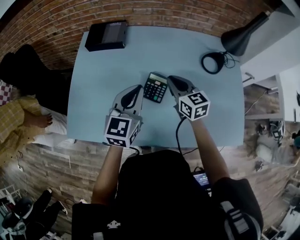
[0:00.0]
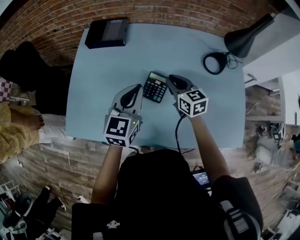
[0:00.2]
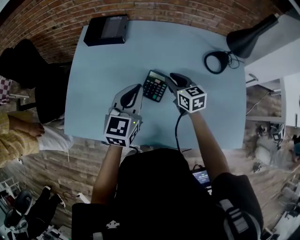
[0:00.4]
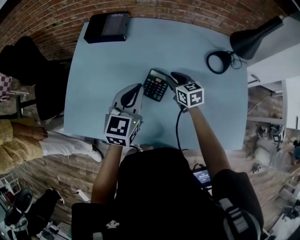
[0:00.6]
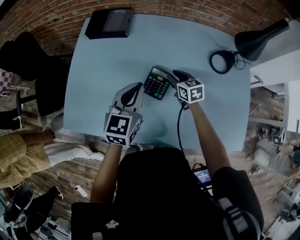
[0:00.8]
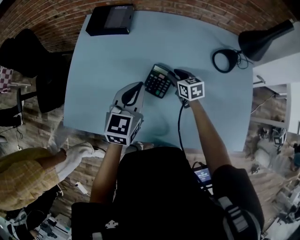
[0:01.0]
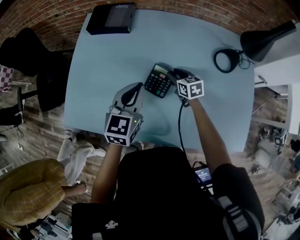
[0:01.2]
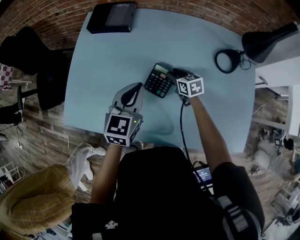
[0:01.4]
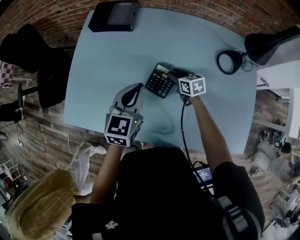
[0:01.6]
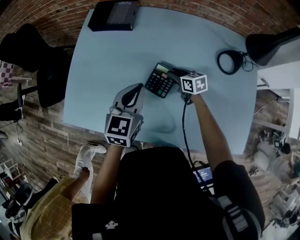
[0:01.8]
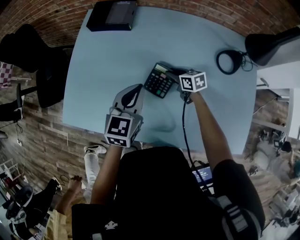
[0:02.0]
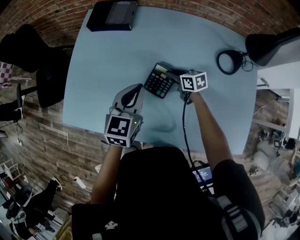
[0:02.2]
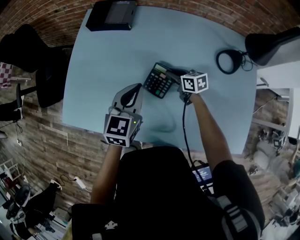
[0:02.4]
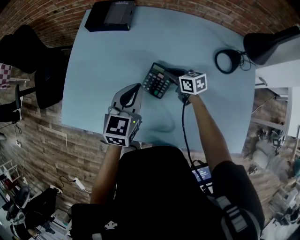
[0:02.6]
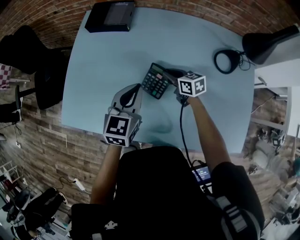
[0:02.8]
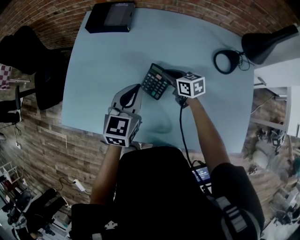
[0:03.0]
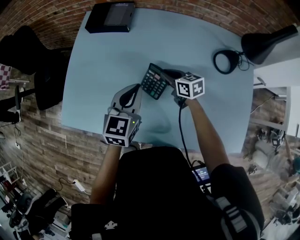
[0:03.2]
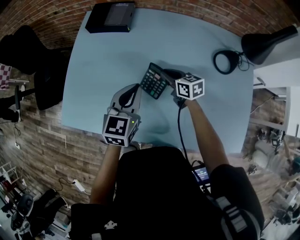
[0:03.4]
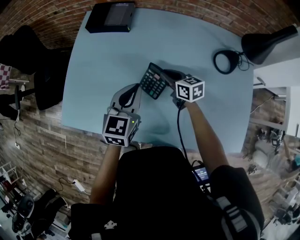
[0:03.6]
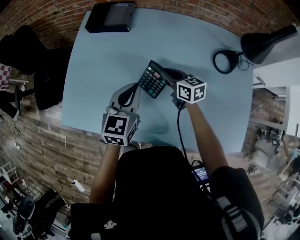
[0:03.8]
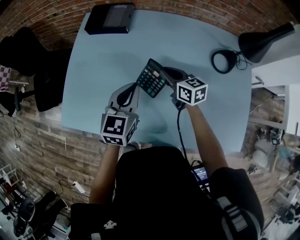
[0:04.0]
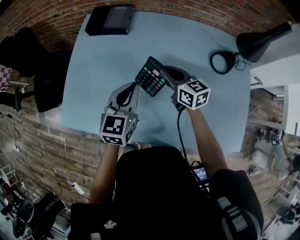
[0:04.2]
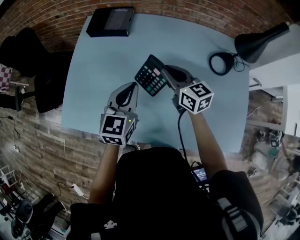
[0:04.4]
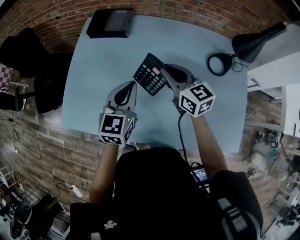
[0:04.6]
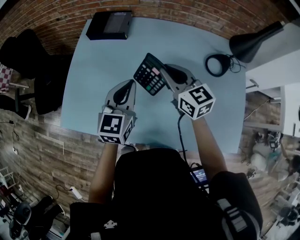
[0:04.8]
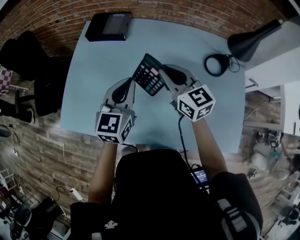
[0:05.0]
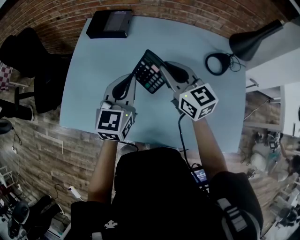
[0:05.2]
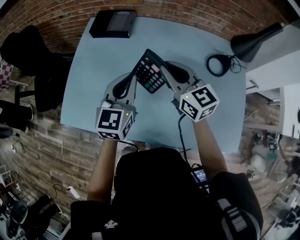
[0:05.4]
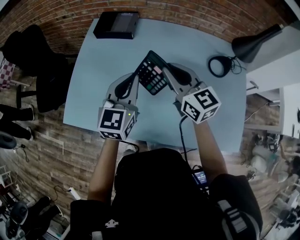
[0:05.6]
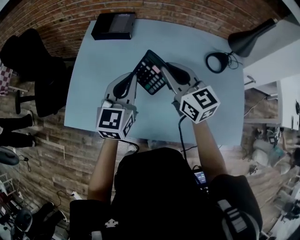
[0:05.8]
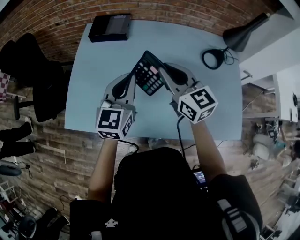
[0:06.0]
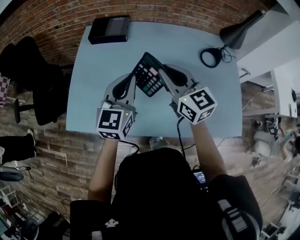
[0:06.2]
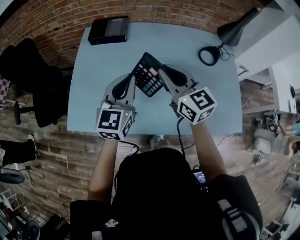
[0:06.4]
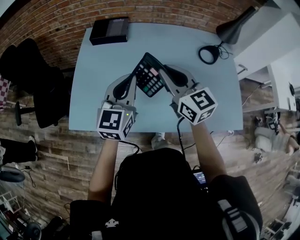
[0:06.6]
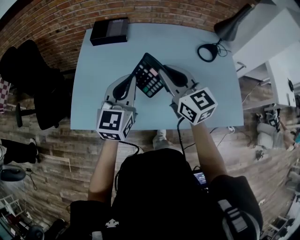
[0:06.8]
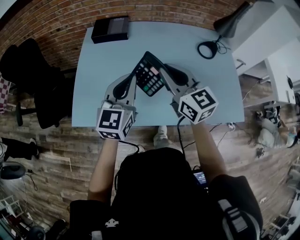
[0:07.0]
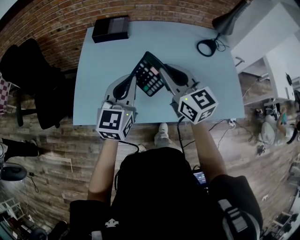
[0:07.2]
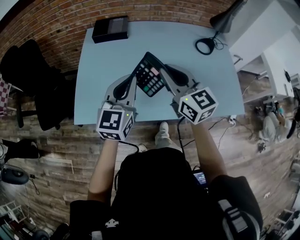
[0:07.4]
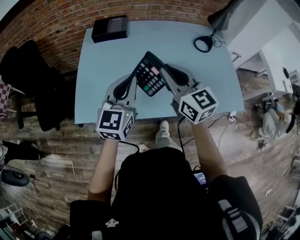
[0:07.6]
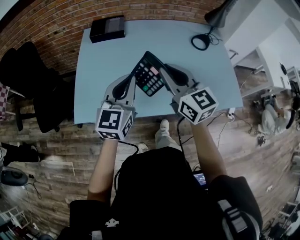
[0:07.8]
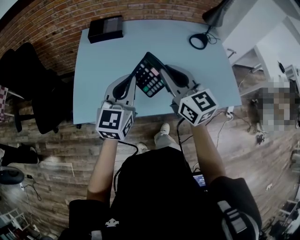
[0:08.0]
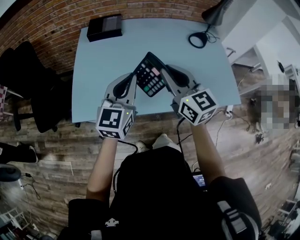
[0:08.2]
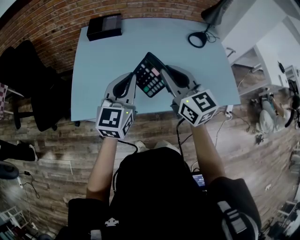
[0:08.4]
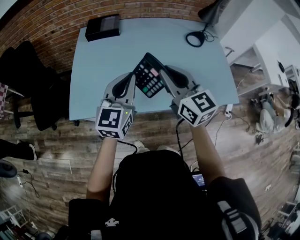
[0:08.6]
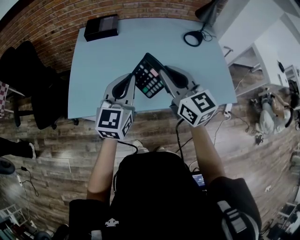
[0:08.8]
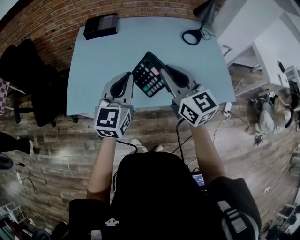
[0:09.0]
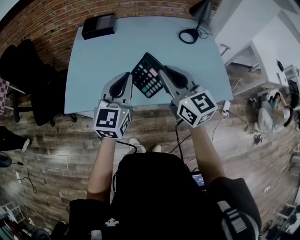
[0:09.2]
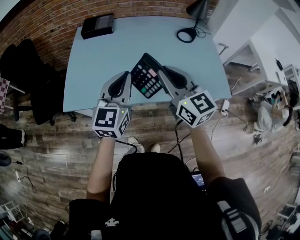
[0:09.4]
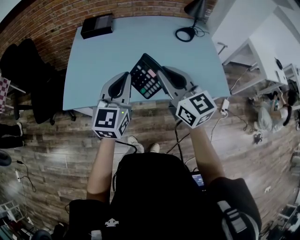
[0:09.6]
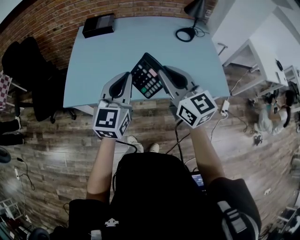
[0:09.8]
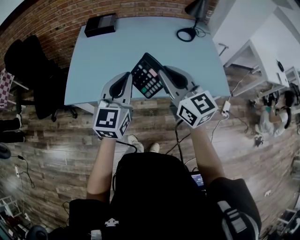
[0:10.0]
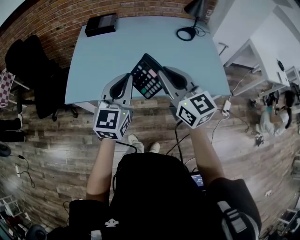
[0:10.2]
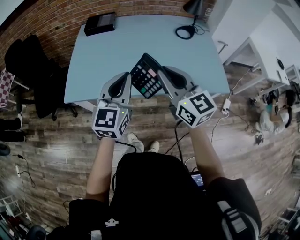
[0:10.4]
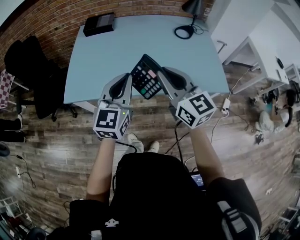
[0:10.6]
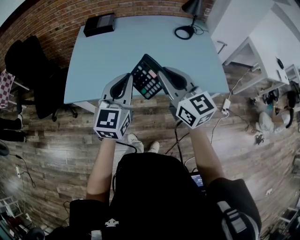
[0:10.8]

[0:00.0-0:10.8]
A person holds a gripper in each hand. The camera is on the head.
0:00.0 to 0:01.6: The left gripper moves downward, approximately 5 cm; the right gripper heads downward, covering roughly 20 cm, changes its angle by roughly 30 degrees, and opens up.
0:01.6 to 0:03.0: The right gripper shifts by some 5 cm.
0:03.0 to 0:04.6: The right gripper moves upward, roughly 20 cm, and rotates roughly 30 degrees.
0:04.6 to 0:06.2: The right gripper moves upward, backward and to the left, approximately 15 cm. Meanwhile the left gripper goes some 5 cm upward.
0:06.2 to 0:07.8: The right gripper goes about 15 cm backward; the left gripper heads backward and to the left, covering roughly 15 cm.
0:07.8 to 0:09.2: Both grippers move to the right and backward, some 10 cm.
0:09.2 to 0:10.8: The two grippers go roughly 10 cm backward.

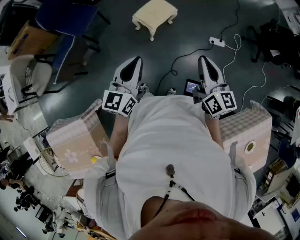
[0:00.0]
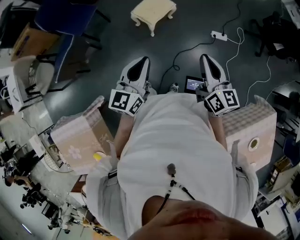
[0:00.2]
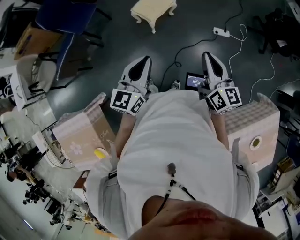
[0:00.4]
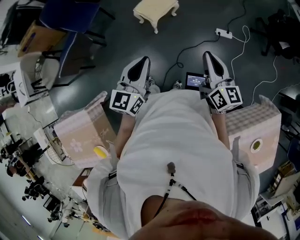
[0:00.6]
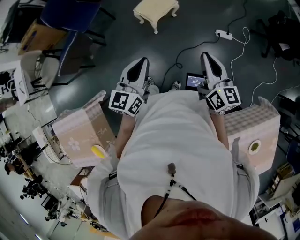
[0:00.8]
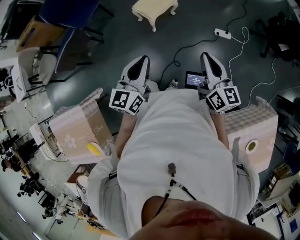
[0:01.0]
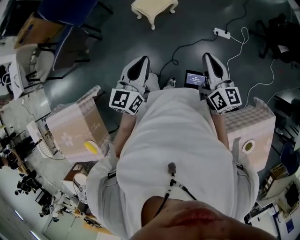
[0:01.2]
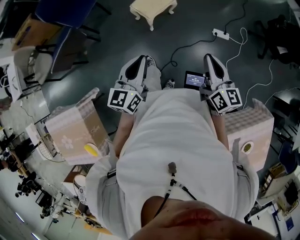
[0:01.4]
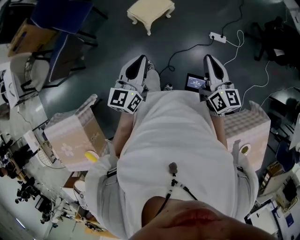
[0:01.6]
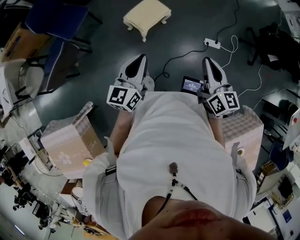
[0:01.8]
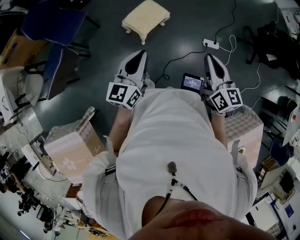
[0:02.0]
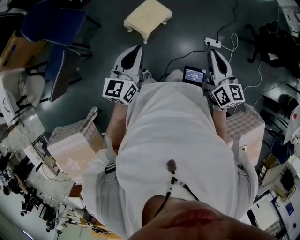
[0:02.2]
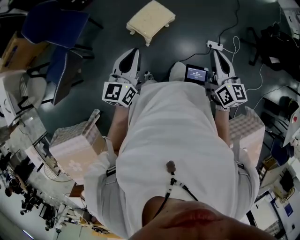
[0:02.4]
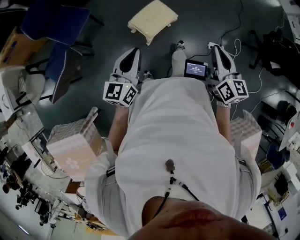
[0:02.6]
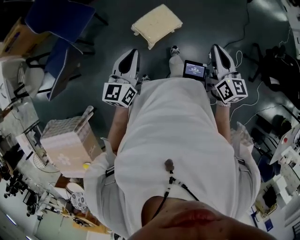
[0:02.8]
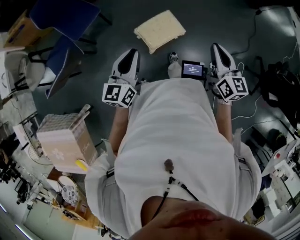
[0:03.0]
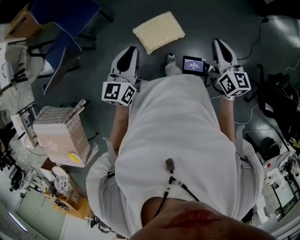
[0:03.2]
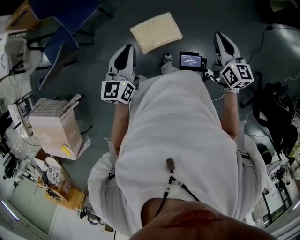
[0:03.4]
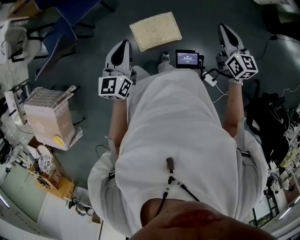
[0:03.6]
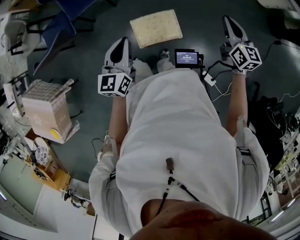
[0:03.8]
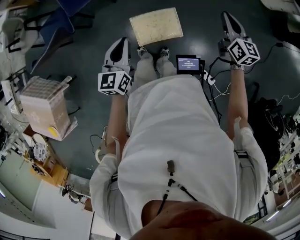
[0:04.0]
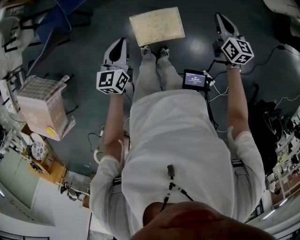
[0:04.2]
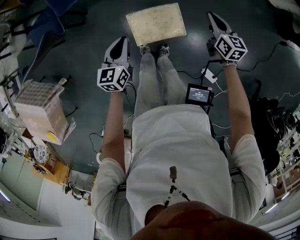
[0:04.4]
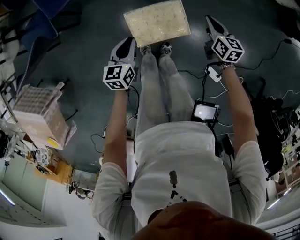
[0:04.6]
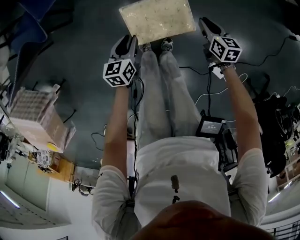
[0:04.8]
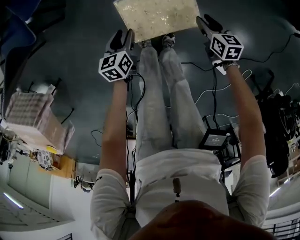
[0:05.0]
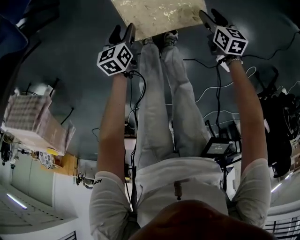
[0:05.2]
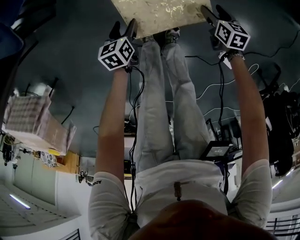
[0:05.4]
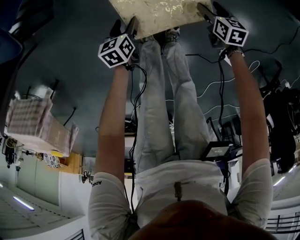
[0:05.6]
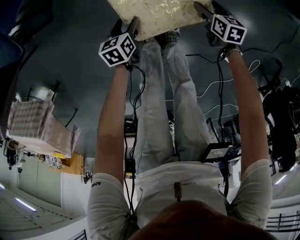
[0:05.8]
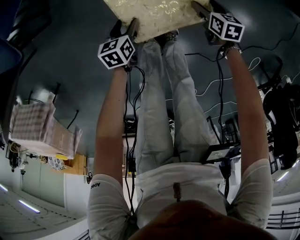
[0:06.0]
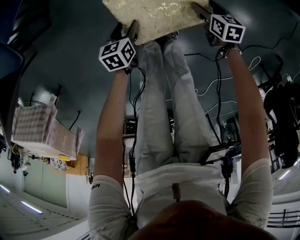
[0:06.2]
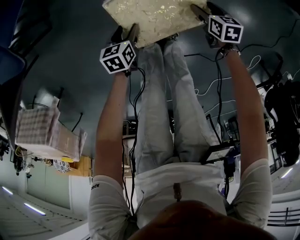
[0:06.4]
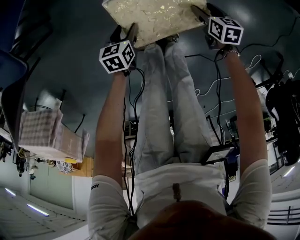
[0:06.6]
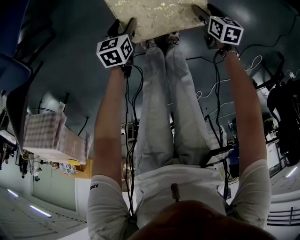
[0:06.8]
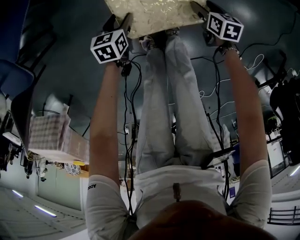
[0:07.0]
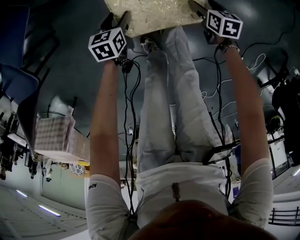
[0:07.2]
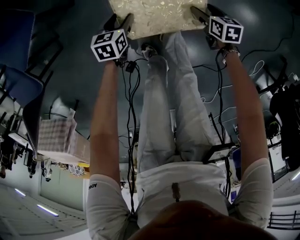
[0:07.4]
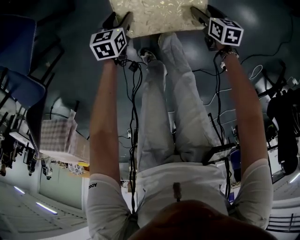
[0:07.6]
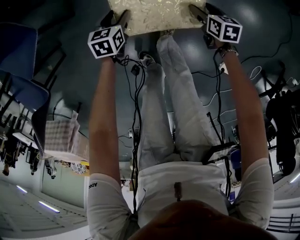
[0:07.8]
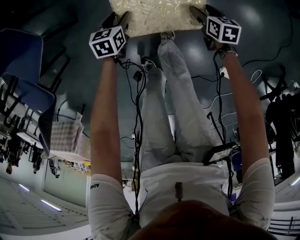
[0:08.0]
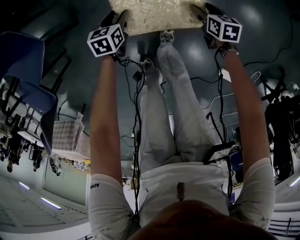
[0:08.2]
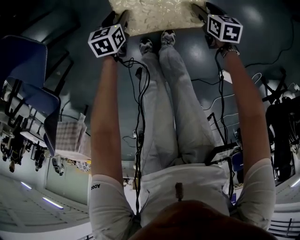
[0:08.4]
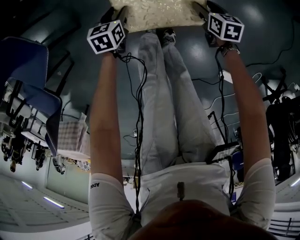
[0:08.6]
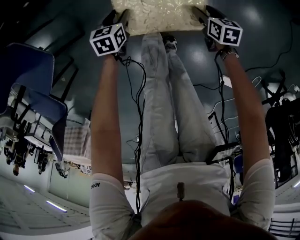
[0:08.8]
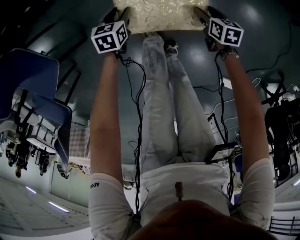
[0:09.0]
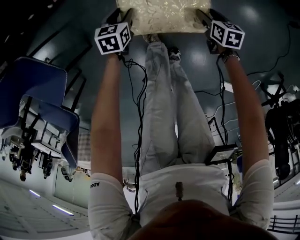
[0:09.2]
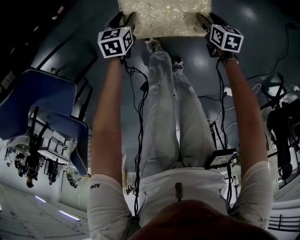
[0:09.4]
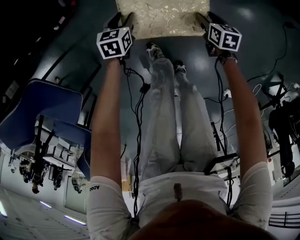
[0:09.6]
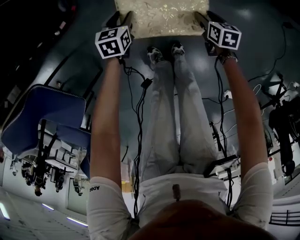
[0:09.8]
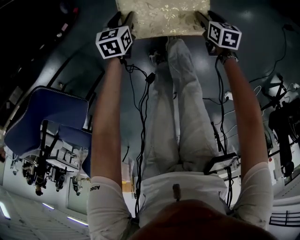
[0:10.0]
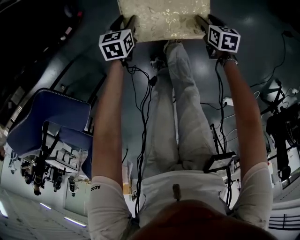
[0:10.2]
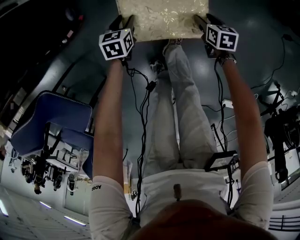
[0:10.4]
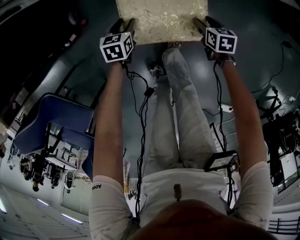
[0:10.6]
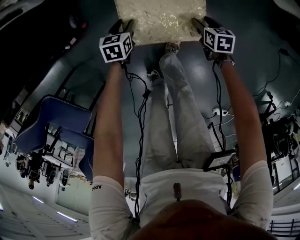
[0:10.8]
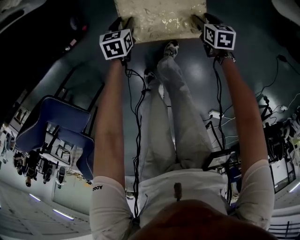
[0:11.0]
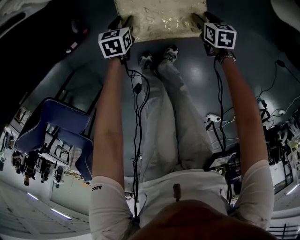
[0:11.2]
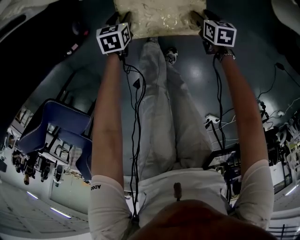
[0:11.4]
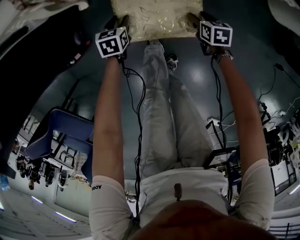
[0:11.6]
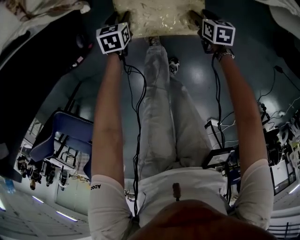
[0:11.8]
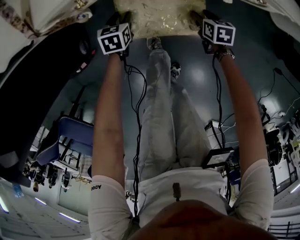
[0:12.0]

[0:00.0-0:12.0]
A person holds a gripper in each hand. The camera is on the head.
0:00.0 to 0:01.6: The grippers both shift to the right by about 10 cm.
0:01.6 to 0:03.0: Both grippers travel together forward, about 35 cm.
0:03.0 to 0:04.4: The right gripper travels forward and downward by roughly 40 cm, and swivels some 30 degrees, while the left gripper shifts roughly 30 cm downward and forward, and rotates roughly 30 degrees.
0:04.4 to 0:06.0: The two grippers go roughly 40 cm downward. The left gripper turns by approximately 30 degrees, and opens, while the right gripper turns by approximately 30 degrees, and opens up.
0:06.0 to 0:07.6: The right gripper shifts about 15 cm forward and to the right. Meanwhile the left gripper travels forward by some 25 cm, and changes its angle by about 20 degrees.
0:07.6 to 0:09.0: Both grippers travel together forward, about 25 cm.
0:09.0 to 0:10.4: The two grippers go approximately 25 cm forward.
0:10.4 to 0:12.0: Both grippers move forward, approximately 35 cm.

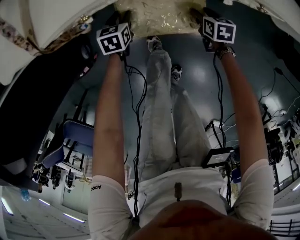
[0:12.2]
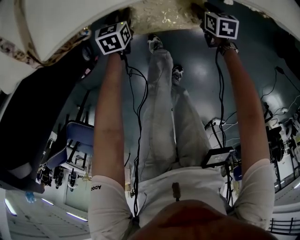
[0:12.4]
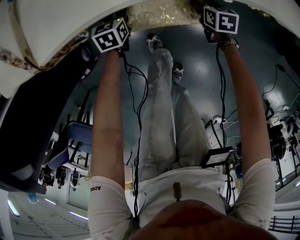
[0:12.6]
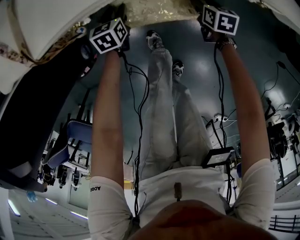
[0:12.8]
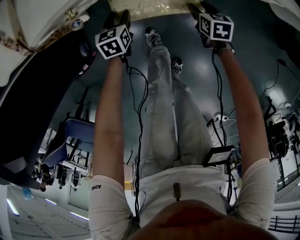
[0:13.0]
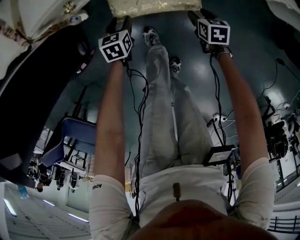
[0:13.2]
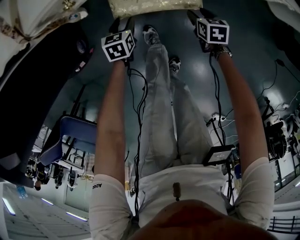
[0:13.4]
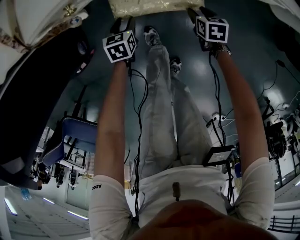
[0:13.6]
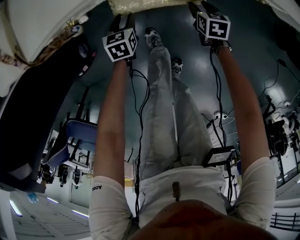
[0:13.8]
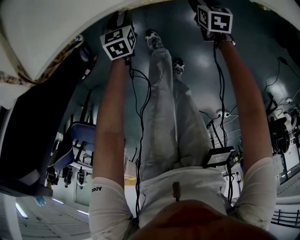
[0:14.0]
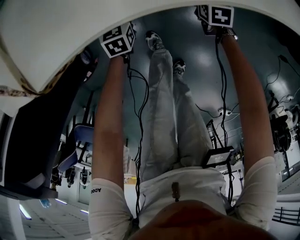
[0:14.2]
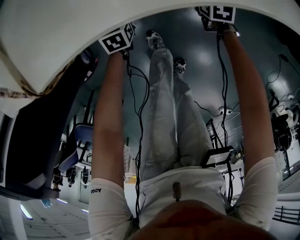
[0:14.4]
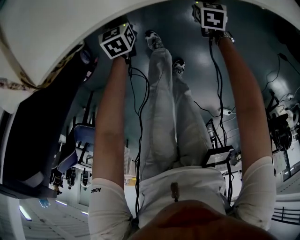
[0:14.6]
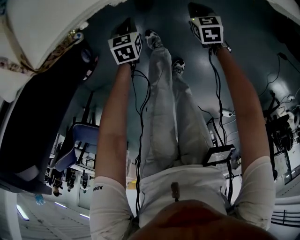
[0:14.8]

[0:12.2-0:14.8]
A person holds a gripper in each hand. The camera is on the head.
0:12.2 to 0:13.4: The two grippers go some 10 cm backward.
0:13.4 to 0:14.8: The right gripper heads forward, covering approximately 5 cm, and closes up, while the left gripper travels forward and back again, roughly 15 cm each way, and closes up.
